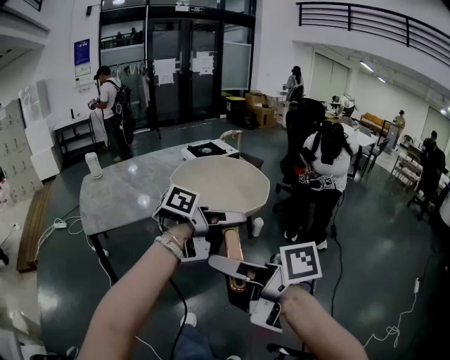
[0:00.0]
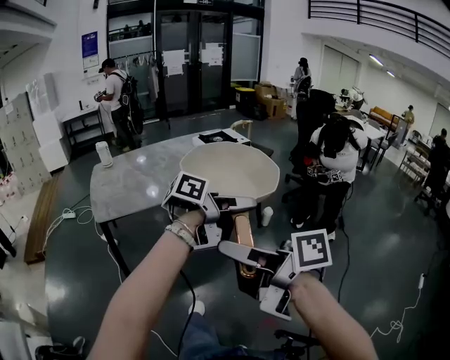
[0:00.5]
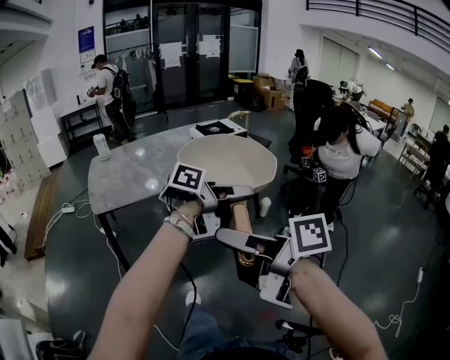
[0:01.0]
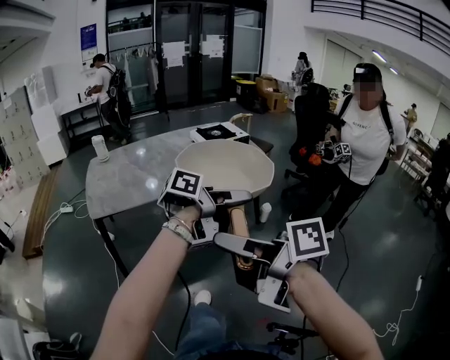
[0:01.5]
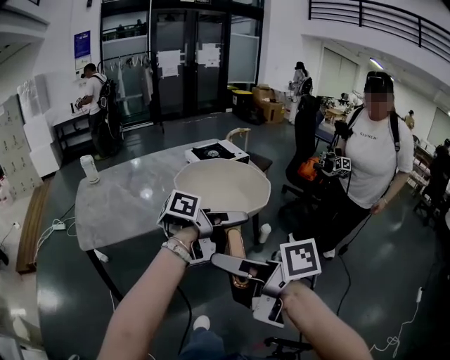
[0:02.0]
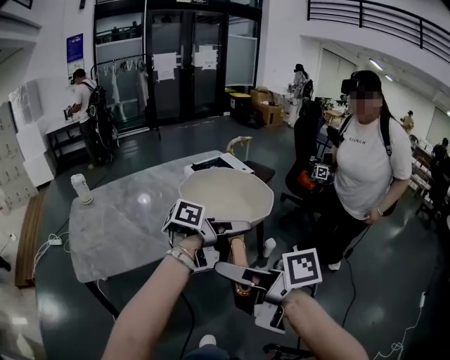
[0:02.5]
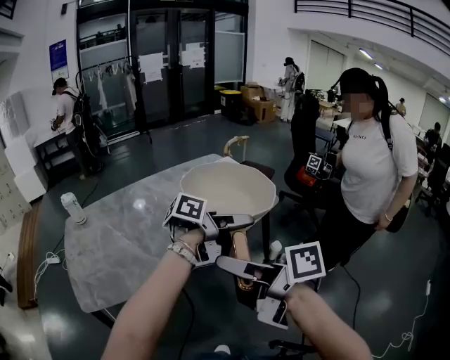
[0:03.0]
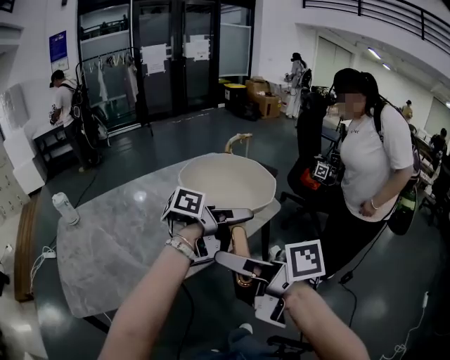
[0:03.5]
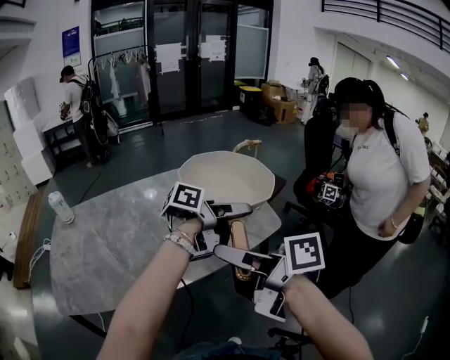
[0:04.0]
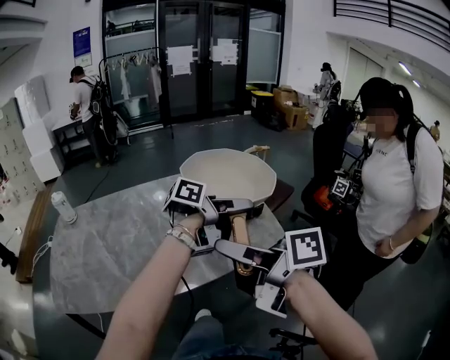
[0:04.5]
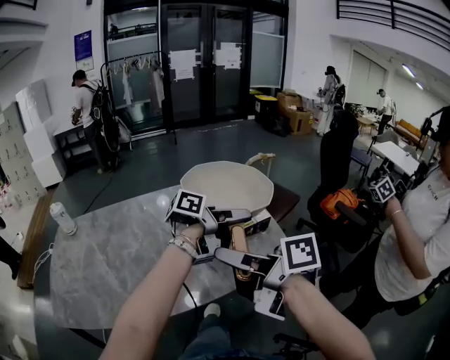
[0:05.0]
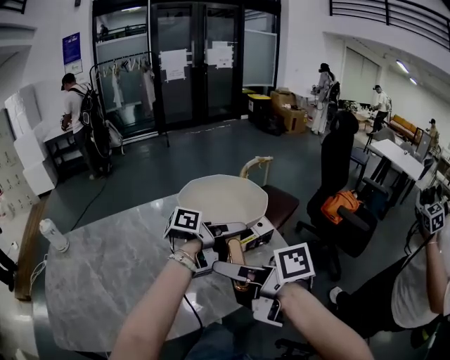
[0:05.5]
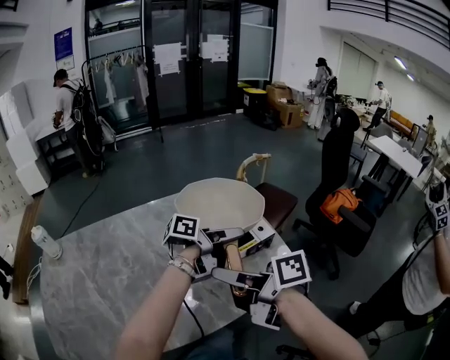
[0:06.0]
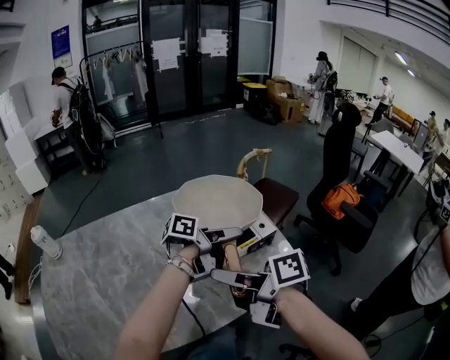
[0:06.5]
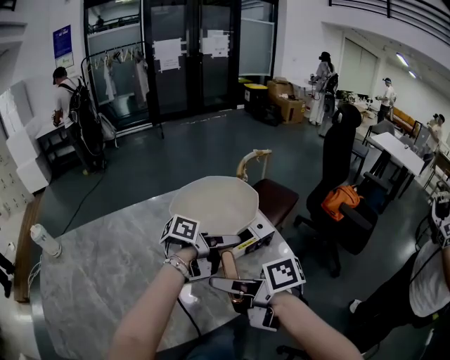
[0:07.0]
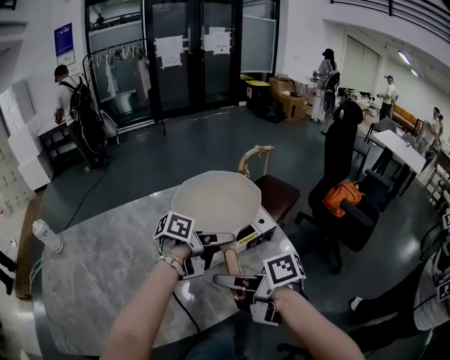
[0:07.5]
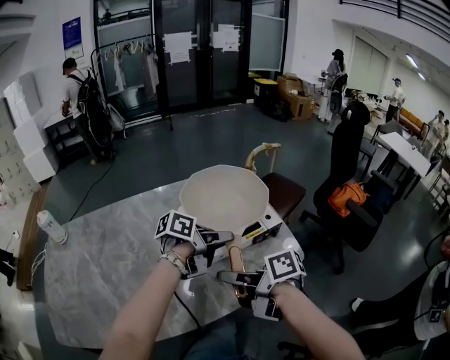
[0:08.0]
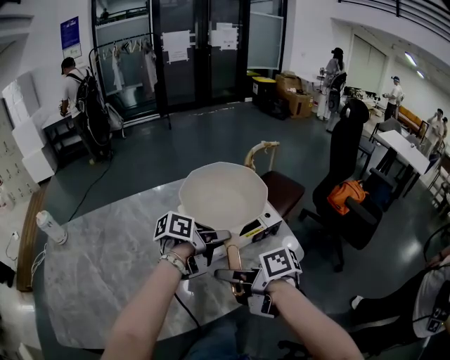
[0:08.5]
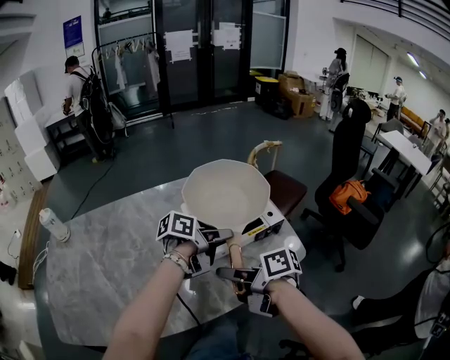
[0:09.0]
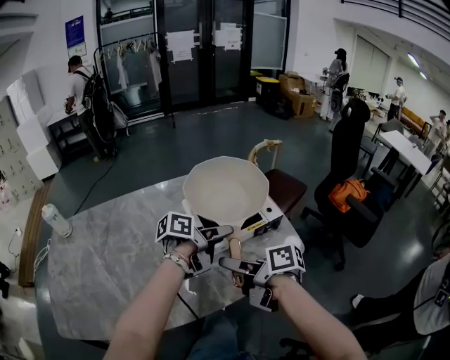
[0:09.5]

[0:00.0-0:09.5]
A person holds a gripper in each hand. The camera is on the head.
0:00.0 to 0:02.0: The right gripper changes place by some 10 cm, while the left gripper ends up some 15 cm from where it was.
0:02.0 to 0:04.0: The right gripper ends up roughly 35 cm from where it was; the left gripper changes place by about 35 cm.
0:04.0 to 0:05.5: The right gripper changes place by some 15 cm, while the left gripper moves about 15 cm.
0:05.5 to 0:07.5: Both grippers move downward, some 10 cm.
0:07.5 to 0:09.5: The right gripper opens.

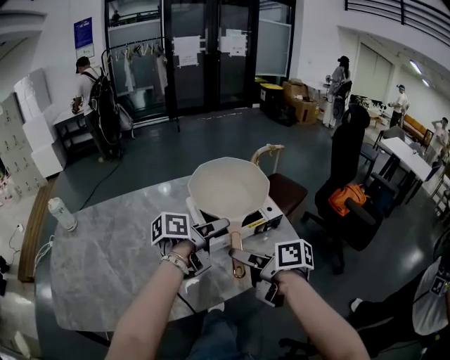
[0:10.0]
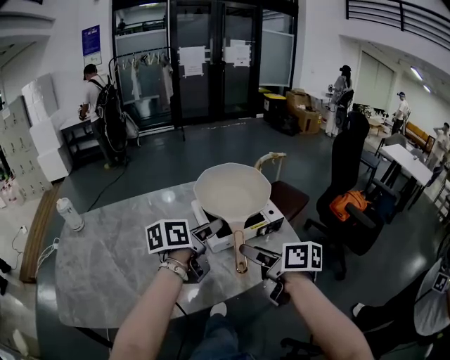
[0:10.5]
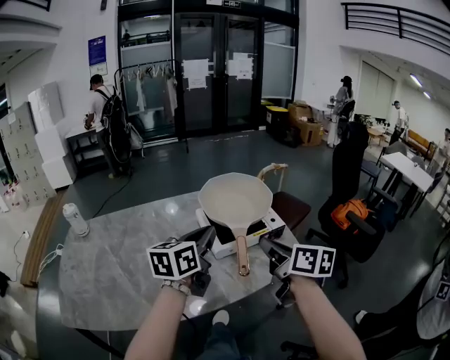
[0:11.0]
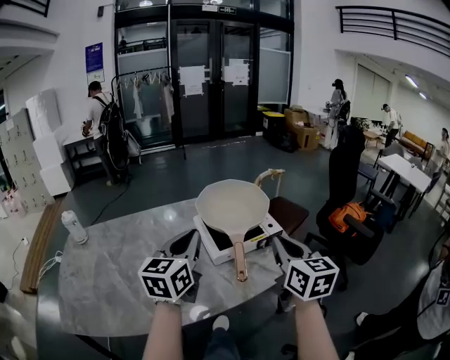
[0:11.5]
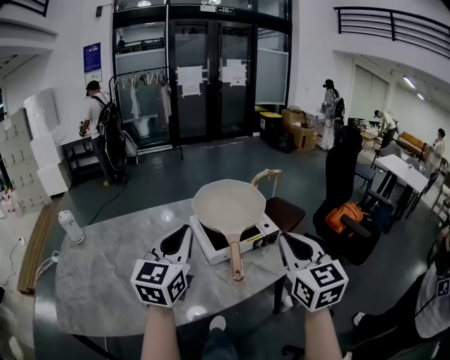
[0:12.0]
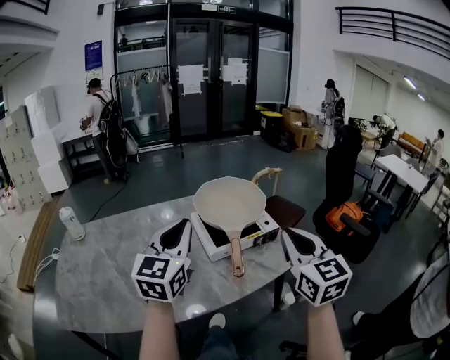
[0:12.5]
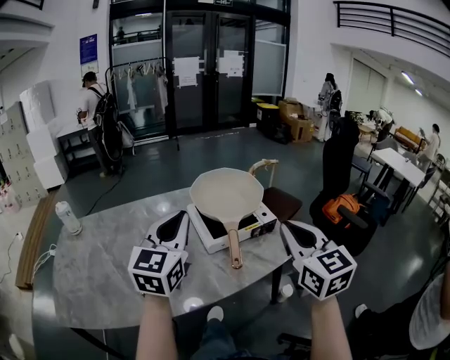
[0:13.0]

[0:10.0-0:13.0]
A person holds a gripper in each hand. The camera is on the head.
0:10.0 to 0:11.5: The left gripper heads upward, to the left and backward, covering some 15 cm, rolls clockwise, seen from behind, by some 50 degrees, and closes its fingers; the right gripper heads upward and to the right, covering some 15 cm, swivels roughly 60 degrees, and closes.
0:11.5 to 0:13.0: The right gripper travels upward by about 5 cm.

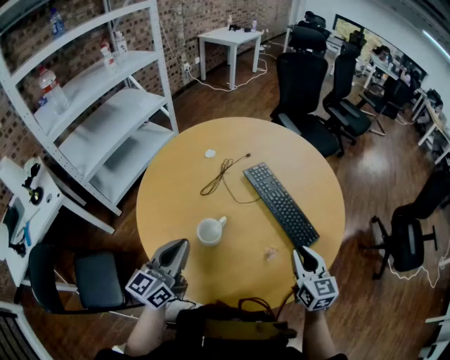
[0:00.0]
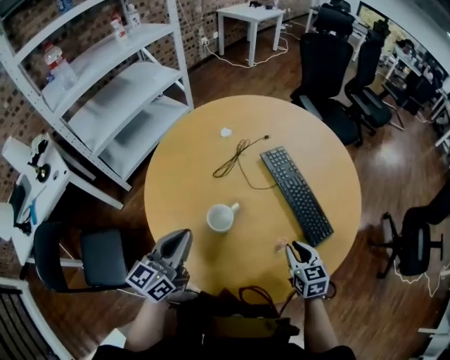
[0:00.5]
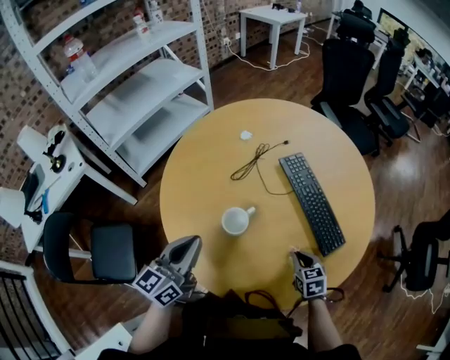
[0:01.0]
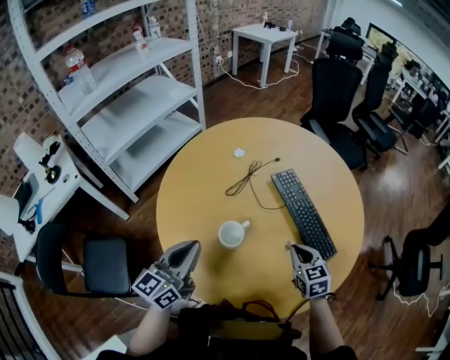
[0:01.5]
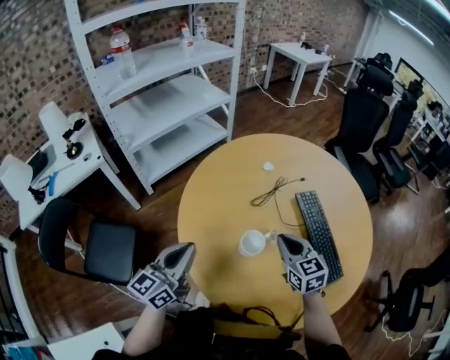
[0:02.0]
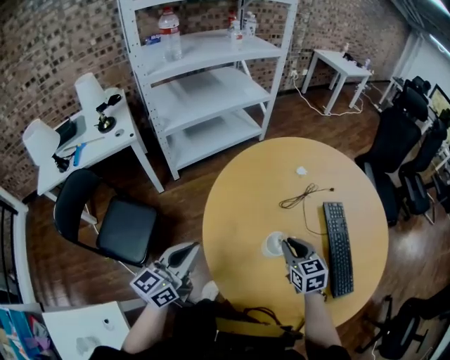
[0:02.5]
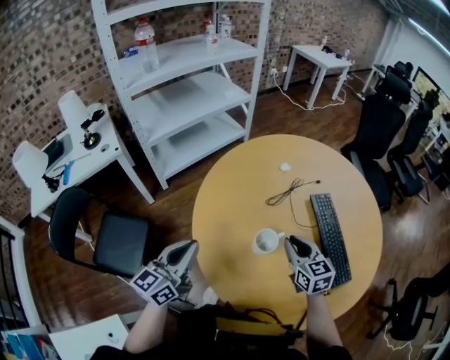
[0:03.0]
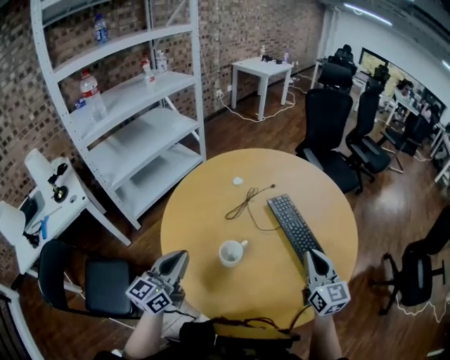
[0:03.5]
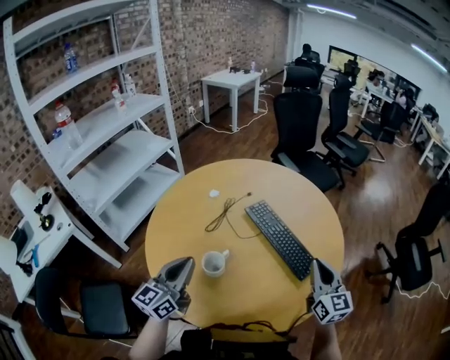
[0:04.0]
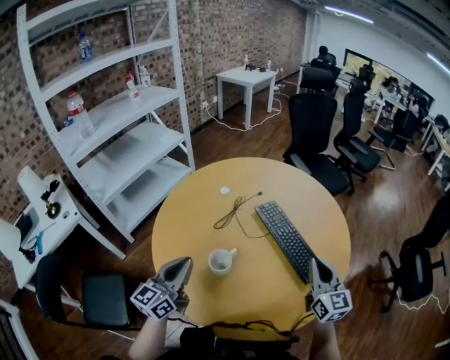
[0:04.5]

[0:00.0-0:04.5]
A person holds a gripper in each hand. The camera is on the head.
0:00.0 to 0:02.0: The left gripper travels to the left by roughly 10 cm; the right gripper goes approximately 25 cm to the left and forward, and changes its angle by about 30 degrees.
0:02.0 to 0:04.5: The left gripper changes place by roughly 10 cm, while the right gripper changes place by approximately 25 cm, and rotates approximately 40 degrees.

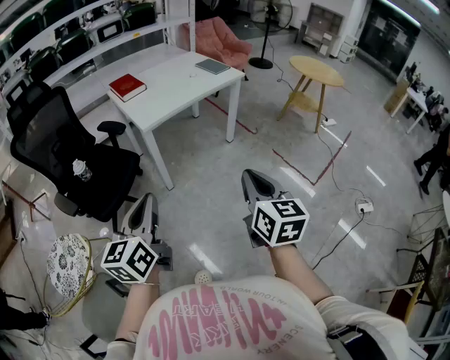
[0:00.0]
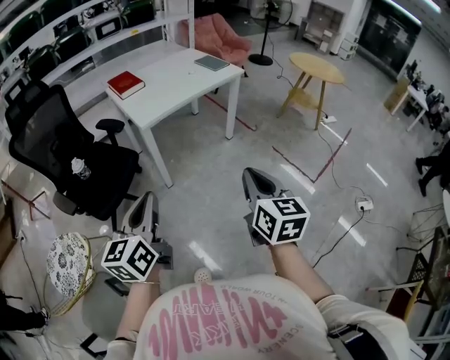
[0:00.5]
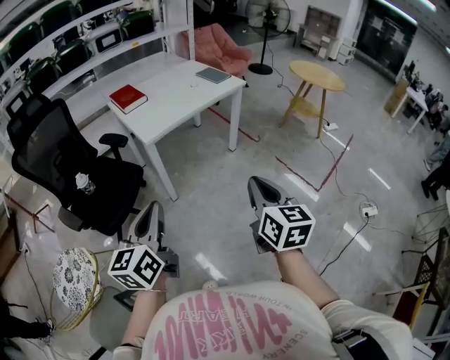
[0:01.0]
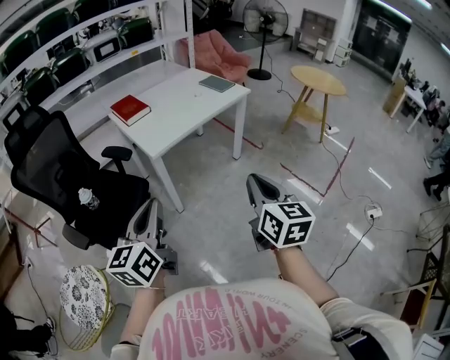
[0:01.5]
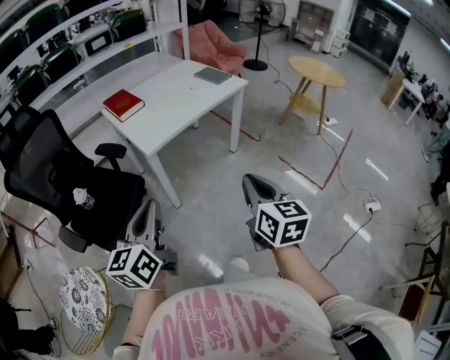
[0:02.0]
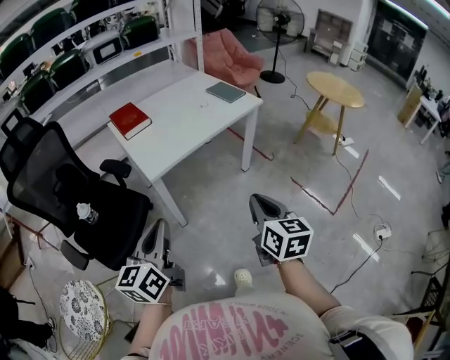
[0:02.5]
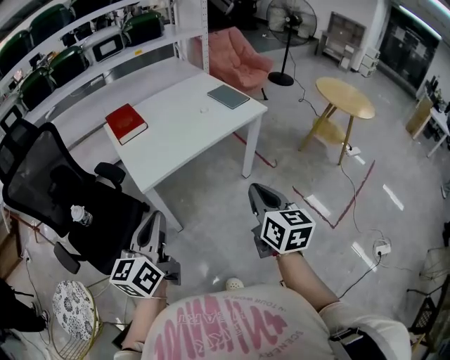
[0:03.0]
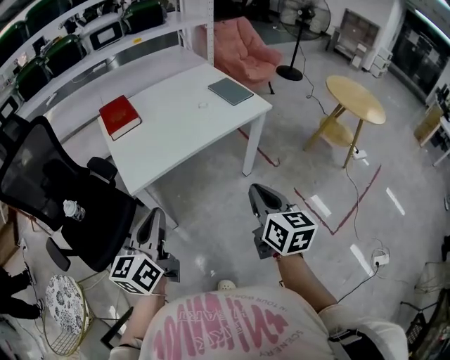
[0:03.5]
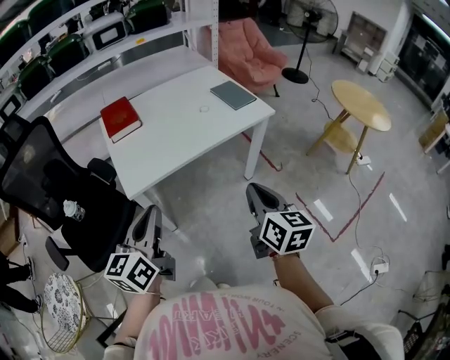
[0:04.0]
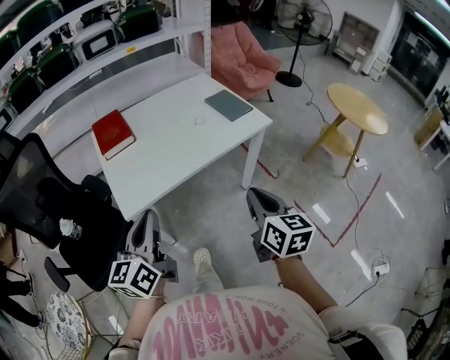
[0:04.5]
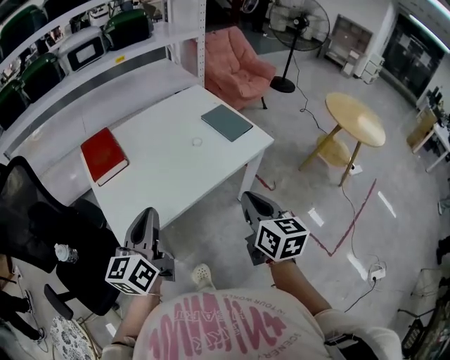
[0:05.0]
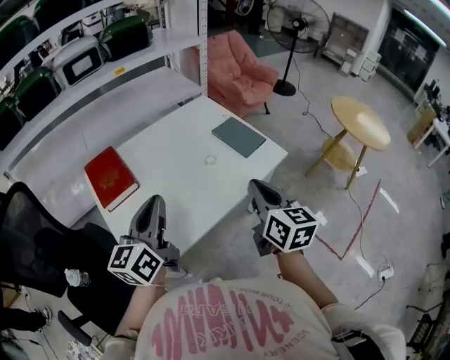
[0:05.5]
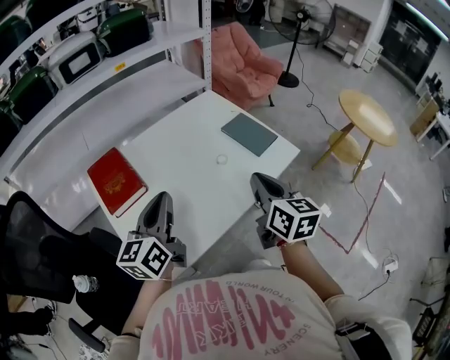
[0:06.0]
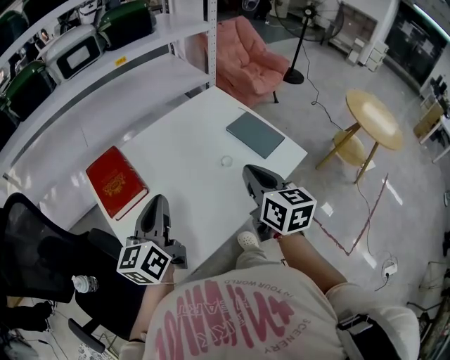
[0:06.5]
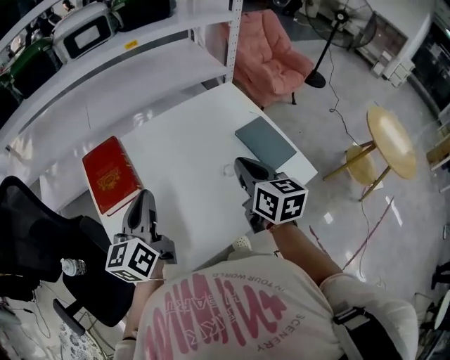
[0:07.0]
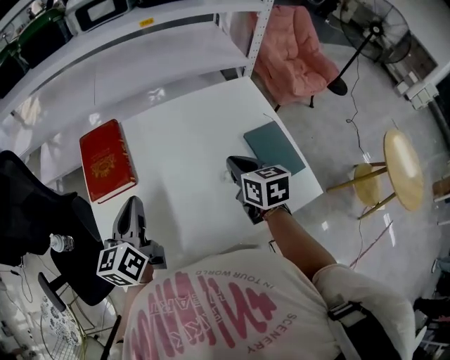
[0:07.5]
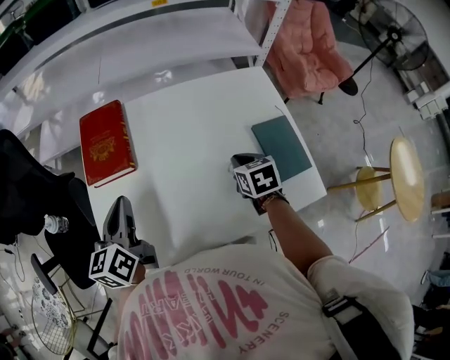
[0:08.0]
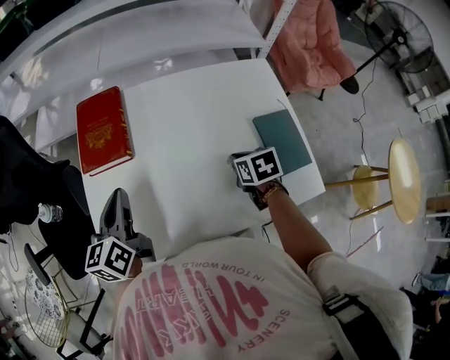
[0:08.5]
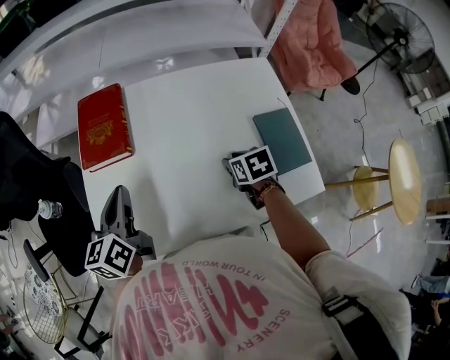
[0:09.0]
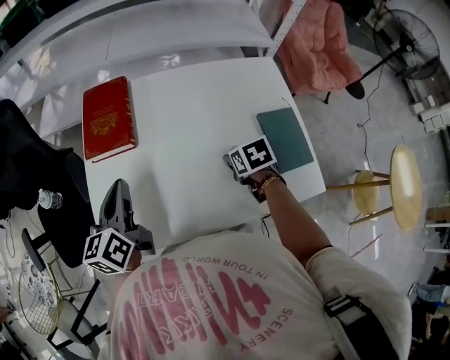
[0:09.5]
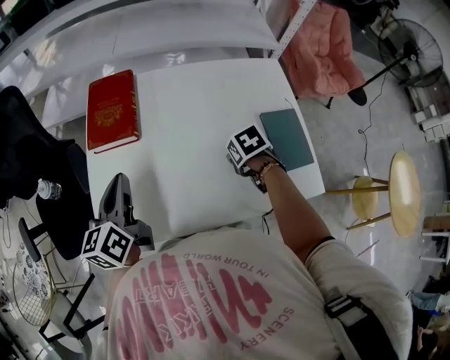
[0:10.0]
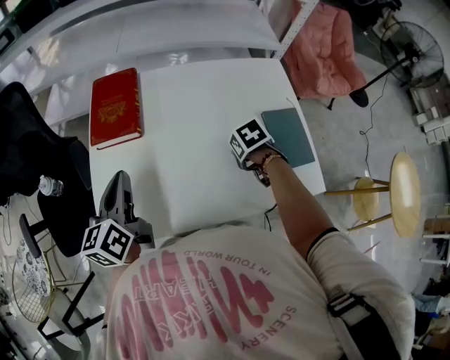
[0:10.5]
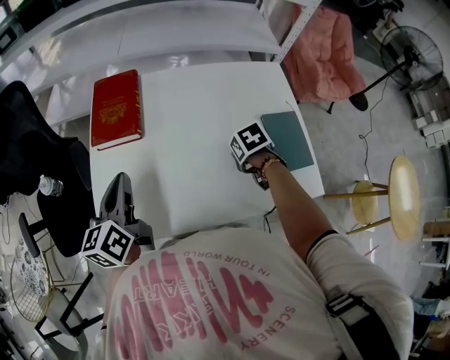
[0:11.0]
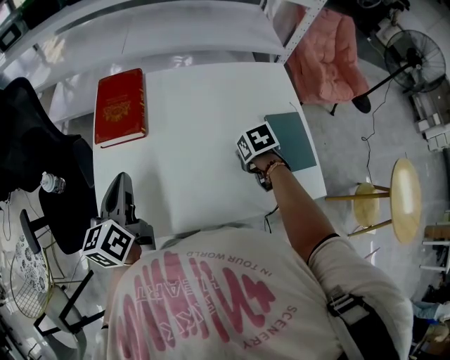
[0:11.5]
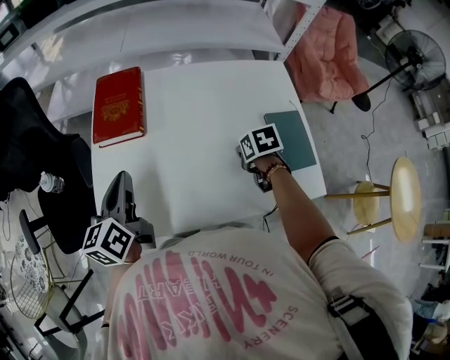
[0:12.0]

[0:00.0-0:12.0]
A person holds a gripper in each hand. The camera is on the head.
0:00.0 to 0:02.0: Both grippers move forward and to the left, roughly 15 cm.
0:02.0 to 0:04.0: The two grippers go approximately 35 cm forward and to the right.
0:04.0 to 0:06.0: The grippers both shift forward by some 40 cm.
0:06.0 to 0:08.0: The left gripper moves some 15 cm, and turns by roughly 40 degrees; the right gripper changes place by about 35 cm, and tilts its fingers about 40 degrees downward.
0:08.0 to 0:10.0: The right gripper shifts by approximately 5 cm, changes its angle by some 30 degrees, and opens its fingers.
0:10.0 to 0:12.0: The right gripper closes up.
